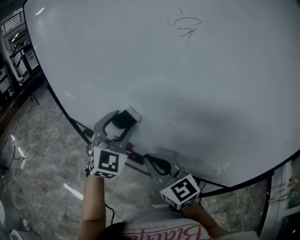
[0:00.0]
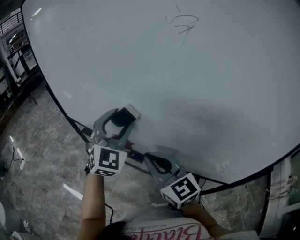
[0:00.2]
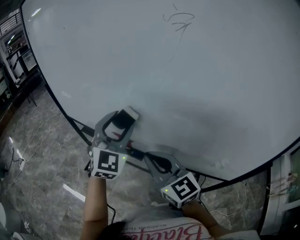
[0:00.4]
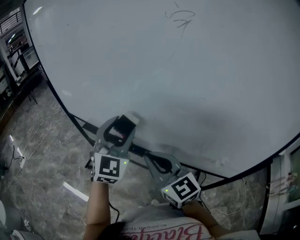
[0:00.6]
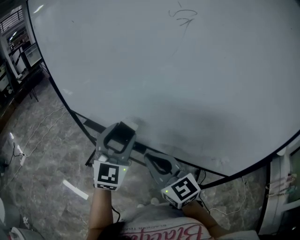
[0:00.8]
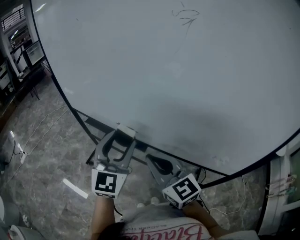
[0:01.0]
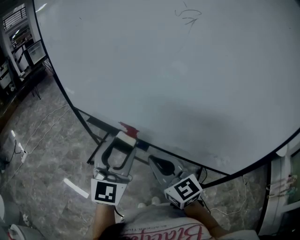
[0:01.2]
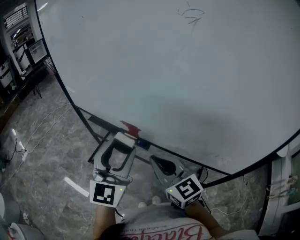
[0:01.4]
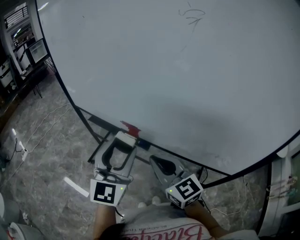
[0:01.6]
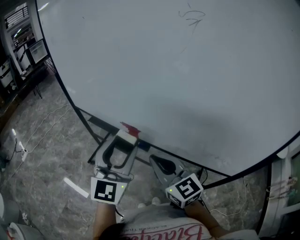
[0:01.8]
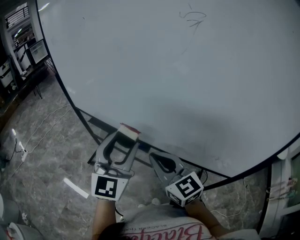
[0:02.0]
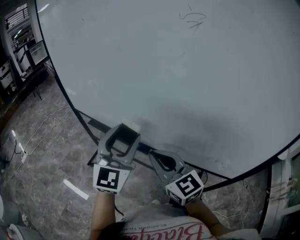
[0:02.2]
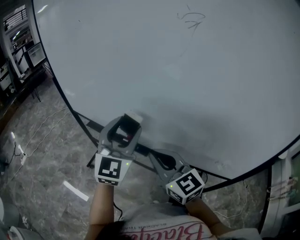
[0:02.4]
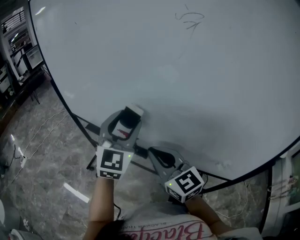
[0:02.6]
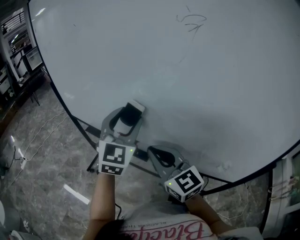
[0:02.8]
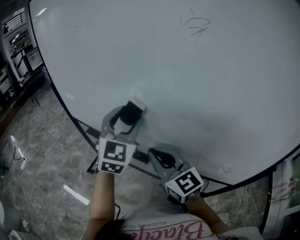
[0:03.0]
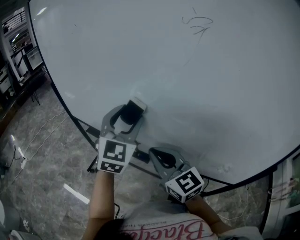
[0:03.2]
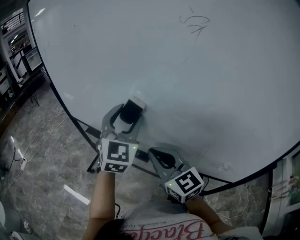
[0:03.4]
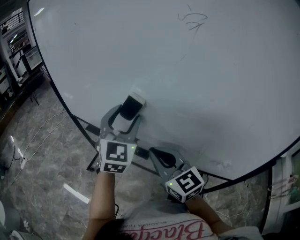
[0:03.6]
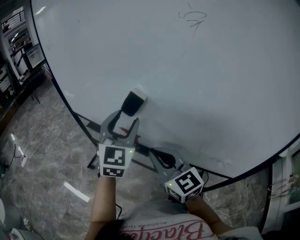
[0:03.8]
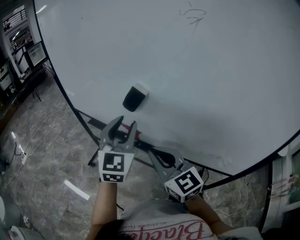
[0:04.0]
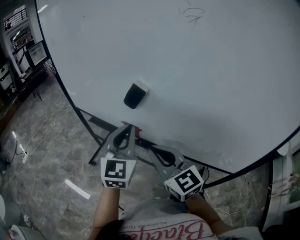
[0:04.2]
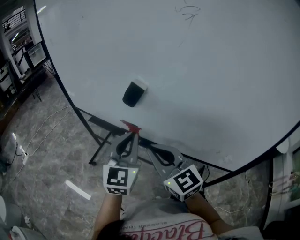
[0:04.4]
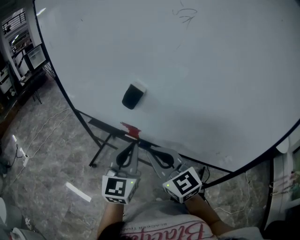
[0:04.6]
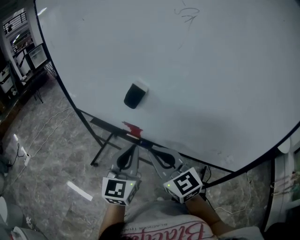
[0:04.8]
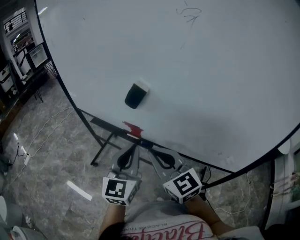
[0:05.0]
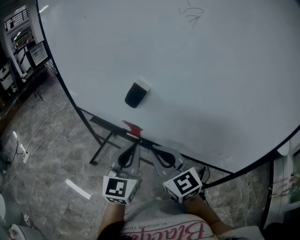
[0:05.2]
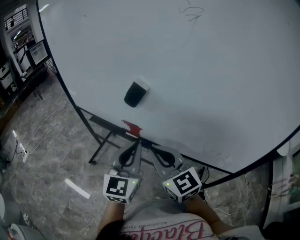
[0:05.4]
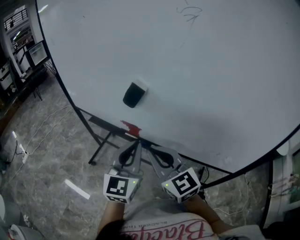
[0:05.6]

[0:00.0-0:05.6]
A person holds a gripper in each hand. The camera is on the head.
0:00.0 to 0:01.4: The left gripper heads backward, covering about 15 cm, and swivels about 30 degrees; the right gripper heads backward, covering about 5 cm.
0:01.4 to 0:02.8: The right gripper travels forward by roughly 5 cm, while the left gripper is displaced forward by approximately 15 cm.
0:02.8 to 0:04.2: The left gripper moves backward, roughly 5 cm, and closes.
0:04.2 to 0:05.6: The left gripper heads backward, covering approximately 5 cm.

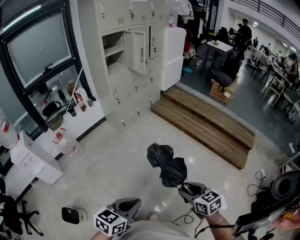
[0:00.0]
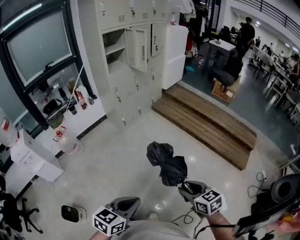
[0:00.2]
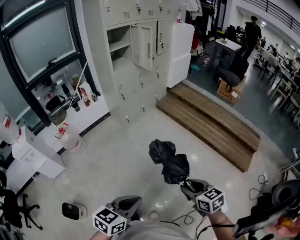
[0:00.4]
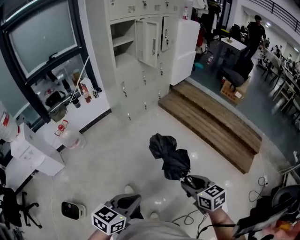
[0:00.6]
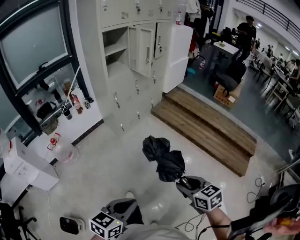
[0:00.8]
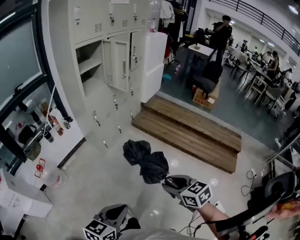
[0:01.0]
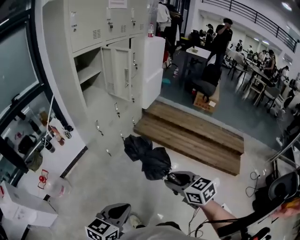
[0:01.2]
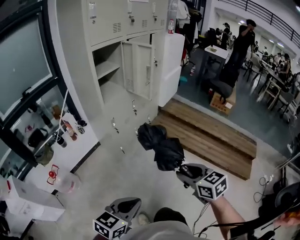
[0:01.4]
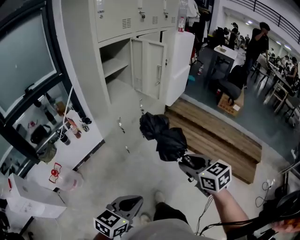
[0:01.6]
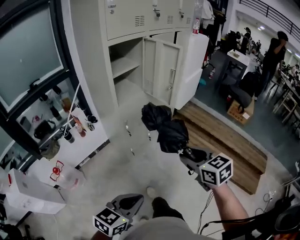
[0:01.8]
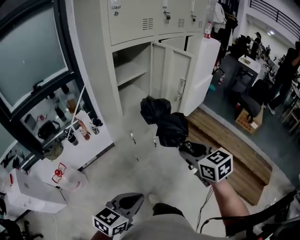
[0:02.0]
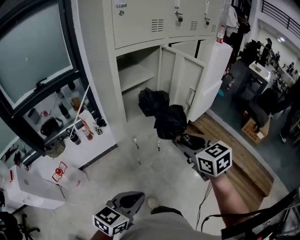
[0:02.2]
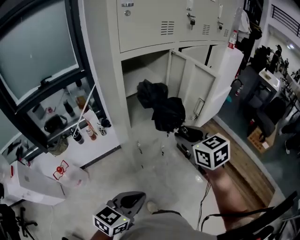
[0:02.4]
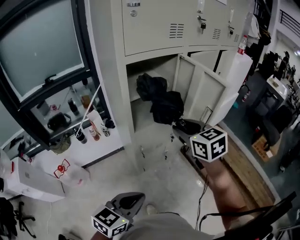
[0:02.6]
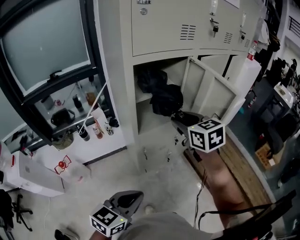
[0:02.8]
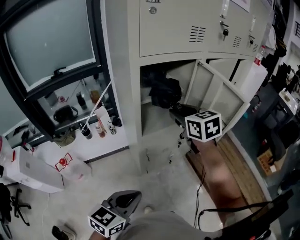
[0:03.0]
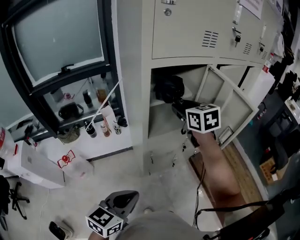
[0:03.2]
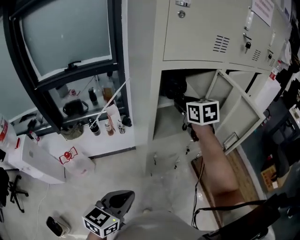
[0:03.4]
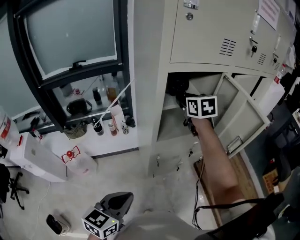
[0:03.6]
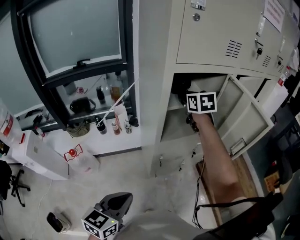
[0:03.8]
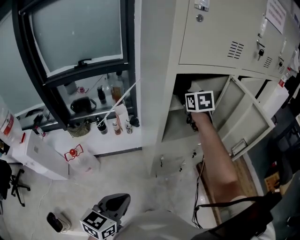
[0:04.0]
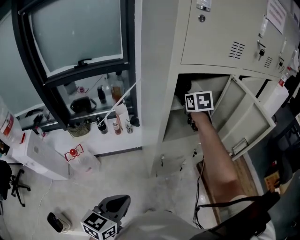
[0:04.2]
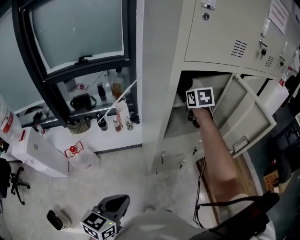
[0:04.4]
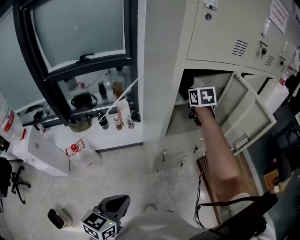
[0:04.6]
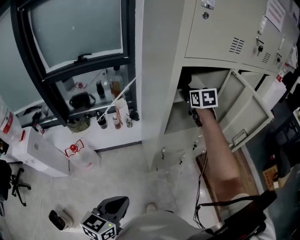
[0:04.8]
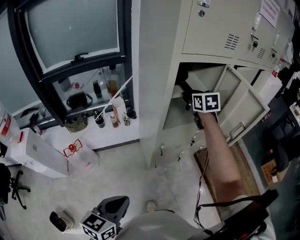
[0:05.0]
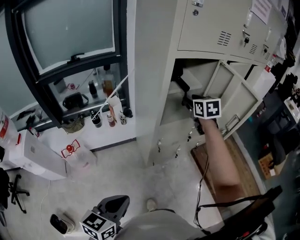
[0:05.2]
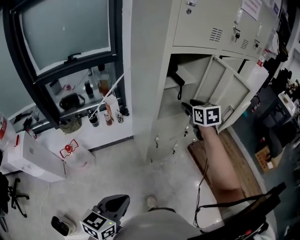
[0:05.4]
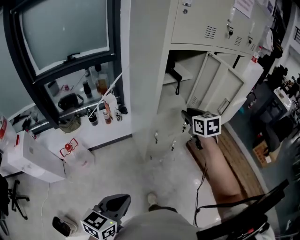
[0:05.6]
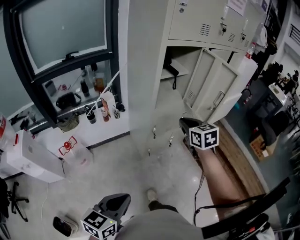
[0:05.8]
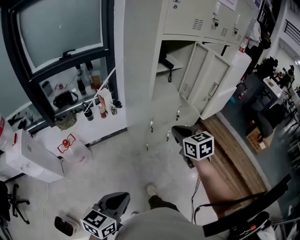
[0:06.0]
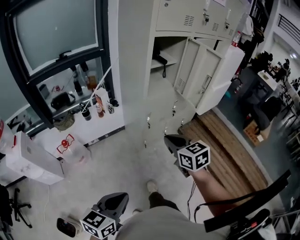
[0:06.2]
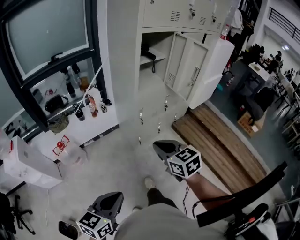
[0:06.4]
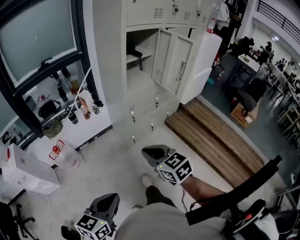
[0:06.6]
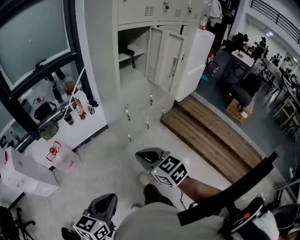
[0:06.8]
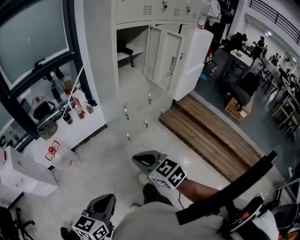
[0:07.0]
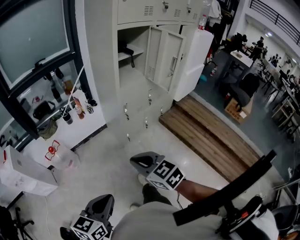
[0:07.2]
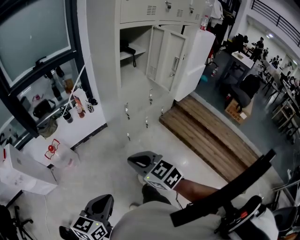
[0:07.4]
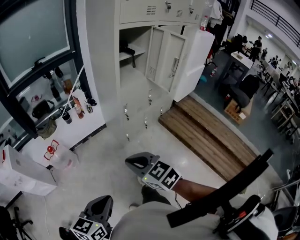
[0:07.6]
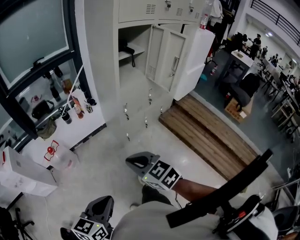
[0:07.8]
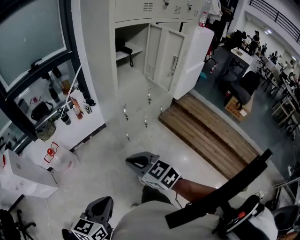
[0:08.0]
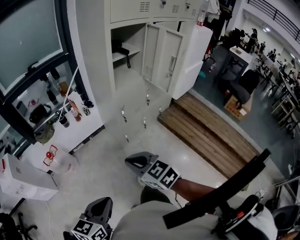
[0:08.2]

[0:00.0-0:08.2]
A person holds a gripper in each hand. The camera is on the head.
0:00.0 to 0:01.6: The two grippers travel together, forward and to the left, roughly 50 cm.
0:01.6 to 0:03.2: The right gripper shifts approximately 60 cm forward, and swivels some 20 degrees; the left gripper heads forward, covering roughly 35 cm, and turns by roughly 30 degrees.
0:03.2 to 0:05.0: The left gripper moves to the left and backward, roughly 10 cm, while the right gripper heads forward, covering about 5 cm.
0:05.0 to 0:06.6: The right gripper goes approximately 60 cm backward, and closes up; the left gripper goes roughly 25 cm backward.

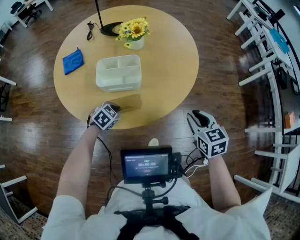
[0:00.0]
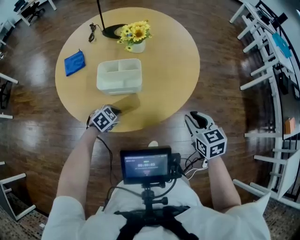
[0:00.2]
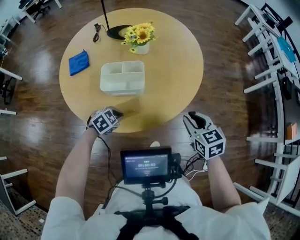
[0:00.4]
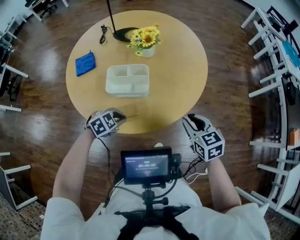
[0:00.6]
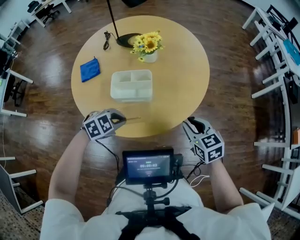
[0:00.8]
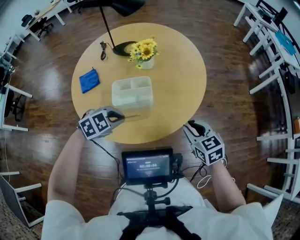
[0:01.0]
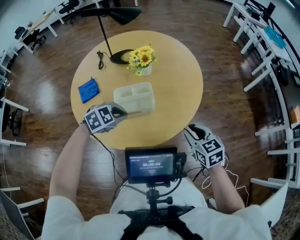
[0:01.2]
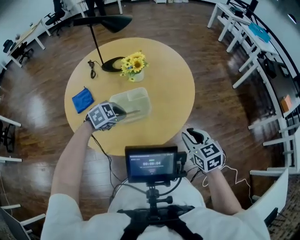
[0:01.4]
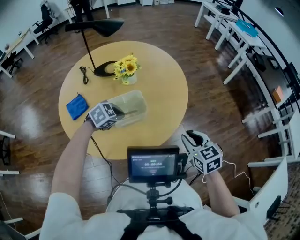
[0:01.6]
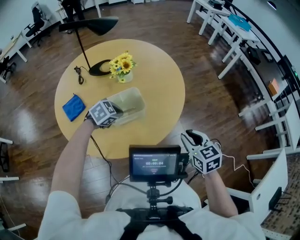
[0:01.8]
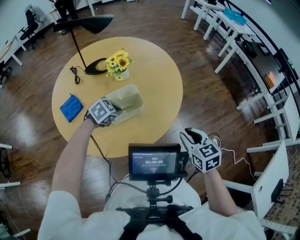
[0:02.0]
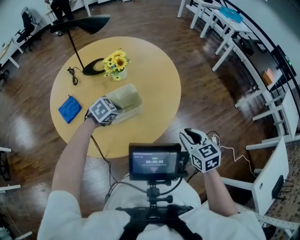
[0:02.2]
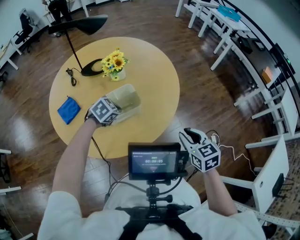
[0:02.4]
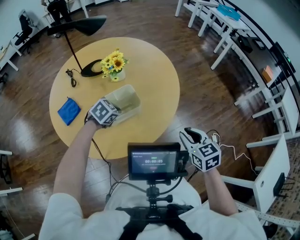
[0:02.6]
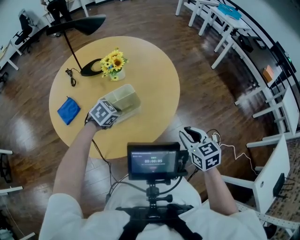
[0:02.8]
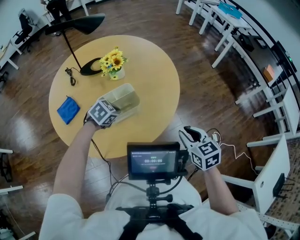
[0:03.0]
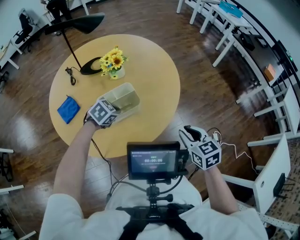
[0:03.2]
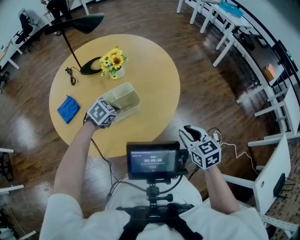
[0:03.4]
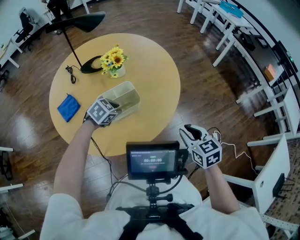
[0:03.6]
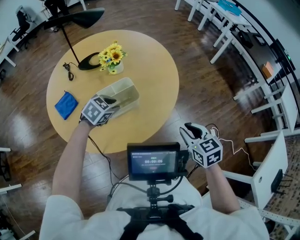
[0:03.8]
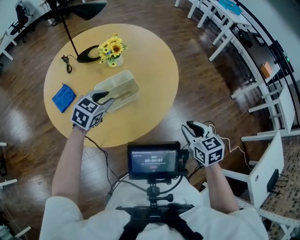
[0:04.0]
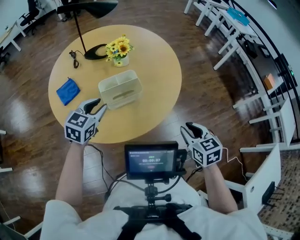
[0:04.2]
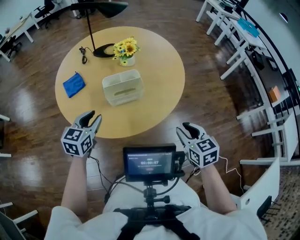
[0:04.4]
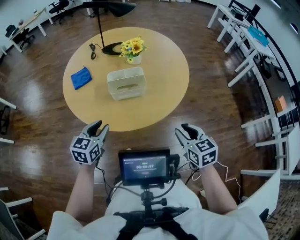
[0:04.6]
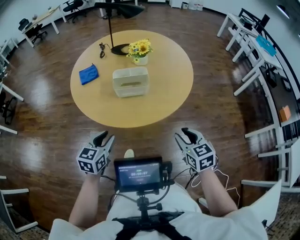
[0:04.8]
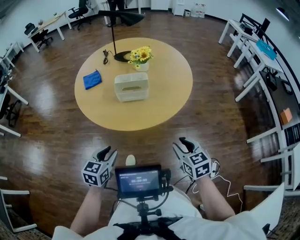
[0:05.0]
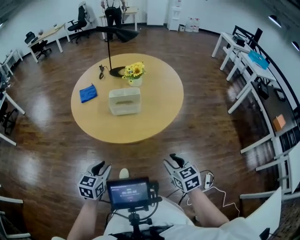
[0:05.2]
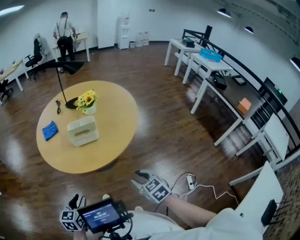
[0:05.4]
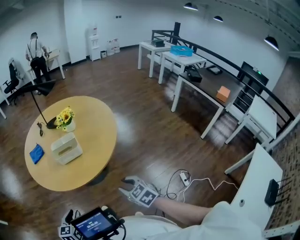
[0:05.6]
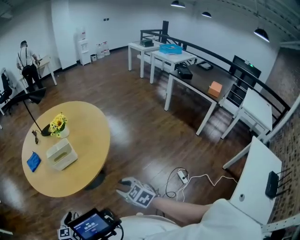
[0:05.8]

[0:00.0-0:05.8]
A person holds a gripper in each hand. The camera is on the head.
0:00.0 to 0:01.4: The left gripper goes some 20 cm upward, and changes its angle by roughly 30 degrees. The right gripper travels to the left, upward and backward by roughly 10 cm.
0:01.4 to 0:02.8: The left gripper moves approximately 5 cm.
0:02.8 to 0:04.4: The left gripper moves approximately 20 cm, swivels approximately 50 degrees, and opens.
0:04.4 to 0:05.8: The left gripper shifts approximately 25 cm backward. Meanwhile the right gripper shifts roughly 15 cm backward and downward.

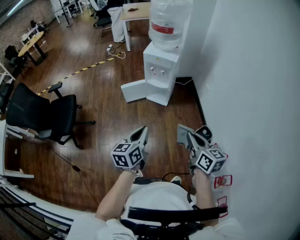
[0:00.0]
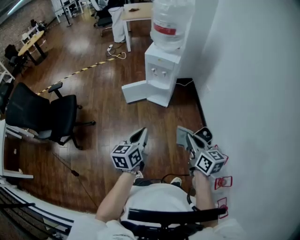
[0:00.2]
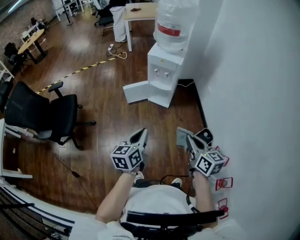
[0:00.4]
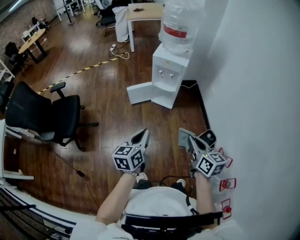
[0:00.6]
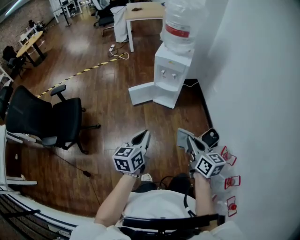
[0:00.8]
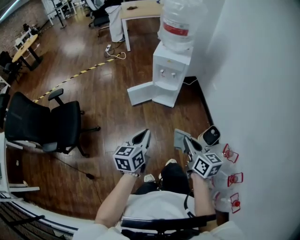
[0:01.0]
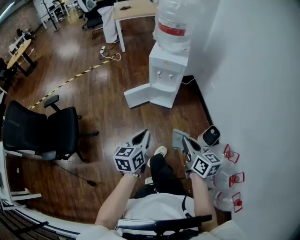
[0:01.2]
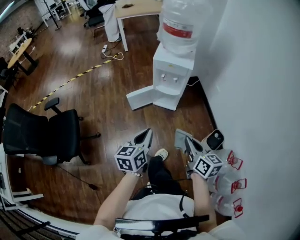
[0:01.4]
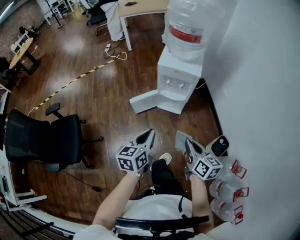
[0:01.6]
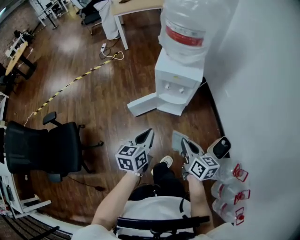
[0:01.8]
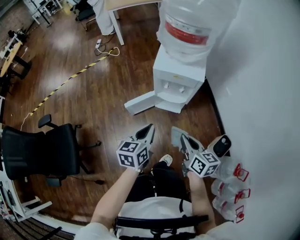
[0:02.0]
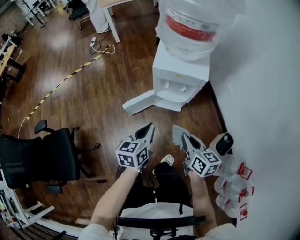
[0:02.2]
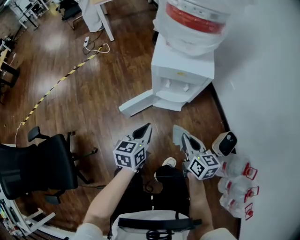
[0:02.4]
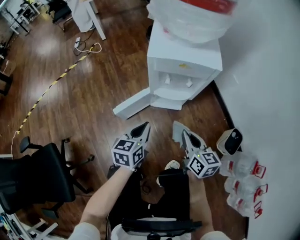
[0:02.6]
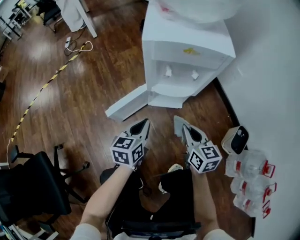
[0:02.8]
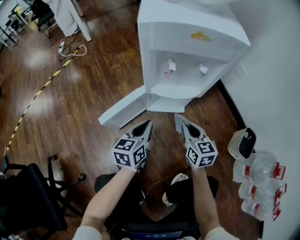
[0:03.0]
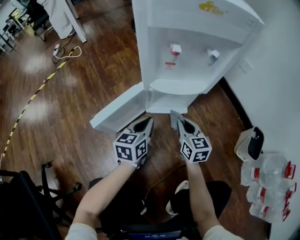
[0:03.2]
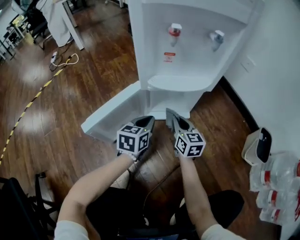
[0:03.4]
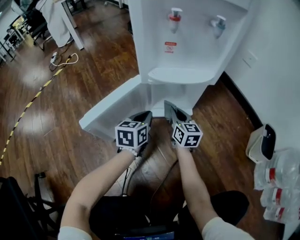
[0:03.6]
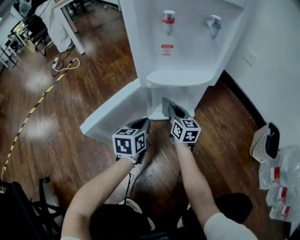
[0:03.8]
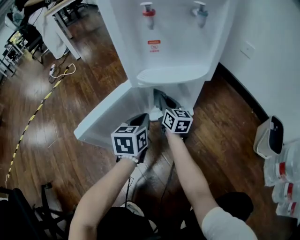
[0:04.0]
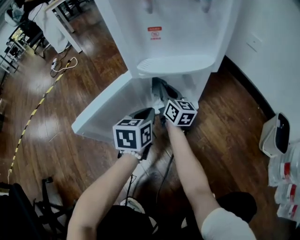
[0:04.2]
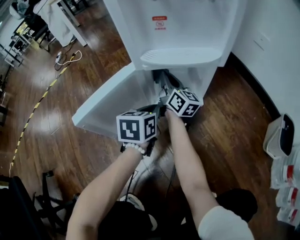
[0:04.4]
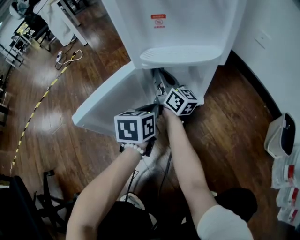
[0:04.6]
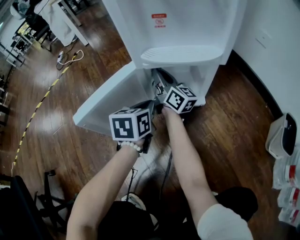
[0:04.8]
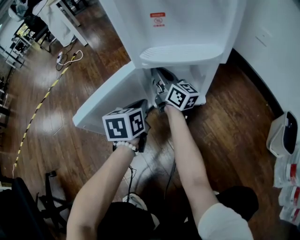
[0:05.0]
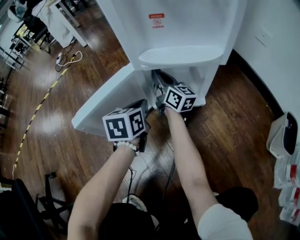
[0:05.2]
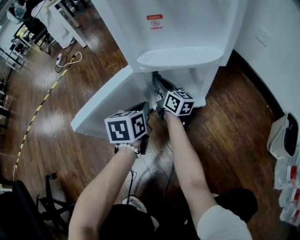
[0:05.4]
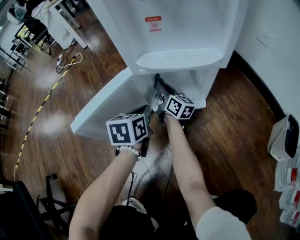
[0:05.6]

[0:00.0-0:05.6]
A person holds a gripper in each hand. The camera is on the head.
0:00.0 to 0:01.4: The right gripper shifts some 20 cm to the left, forward and downward. The left gripper heads forward and to the left, covering approximately 20 cm.
0:01.4 to 0:02.8: Both grippers move downward and forward, about 50 cm.
0:02.8 to 0:04.2: The left gripper goes roughly 30 cm downward. Meanwhile the right gripper heads downward and forward, covering some 40 cm, and turns by approximately 30 degrees.
0:04.2 to 0:05.6: The right gripper goes approximately 5 cm downward.
